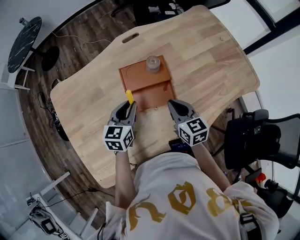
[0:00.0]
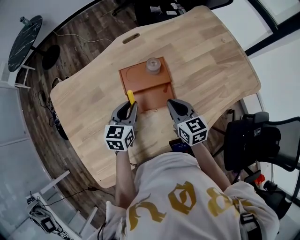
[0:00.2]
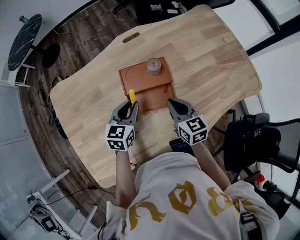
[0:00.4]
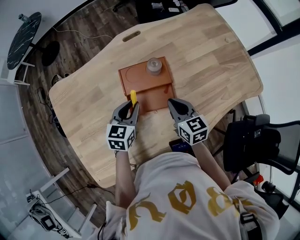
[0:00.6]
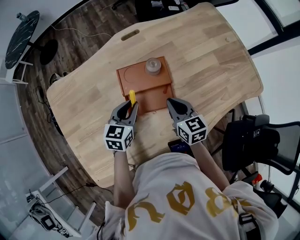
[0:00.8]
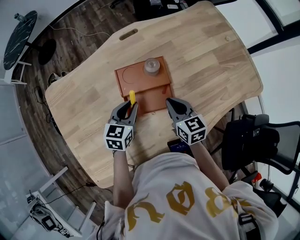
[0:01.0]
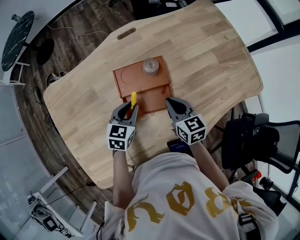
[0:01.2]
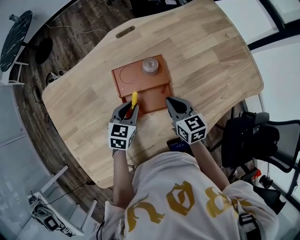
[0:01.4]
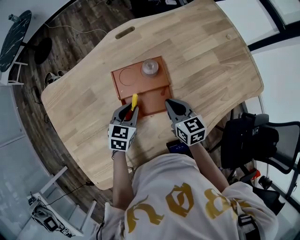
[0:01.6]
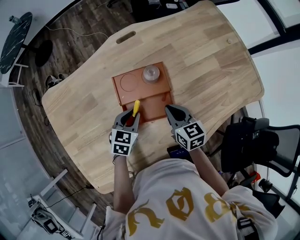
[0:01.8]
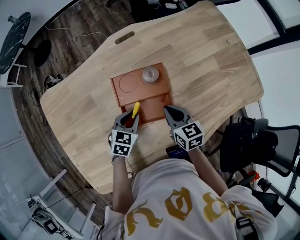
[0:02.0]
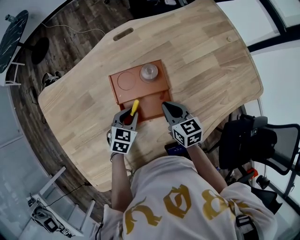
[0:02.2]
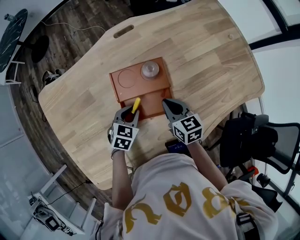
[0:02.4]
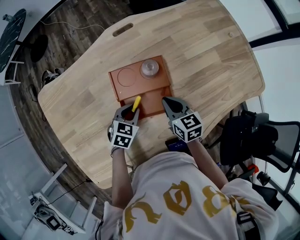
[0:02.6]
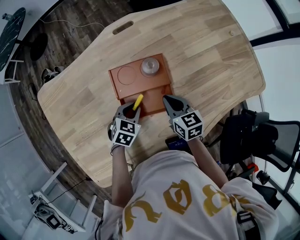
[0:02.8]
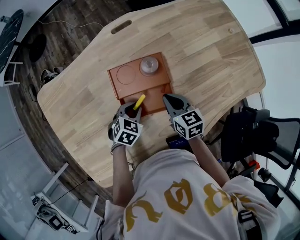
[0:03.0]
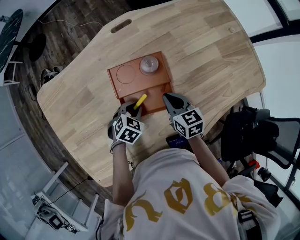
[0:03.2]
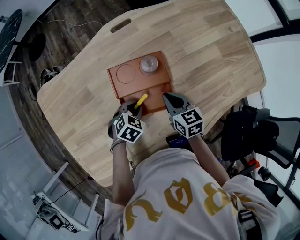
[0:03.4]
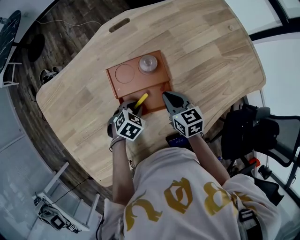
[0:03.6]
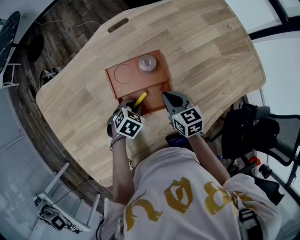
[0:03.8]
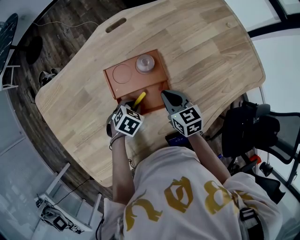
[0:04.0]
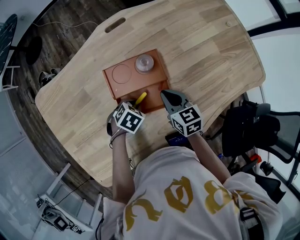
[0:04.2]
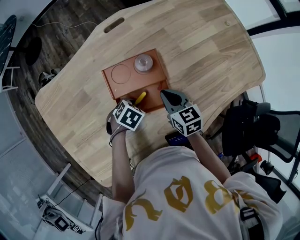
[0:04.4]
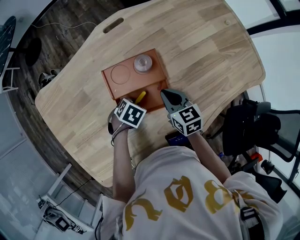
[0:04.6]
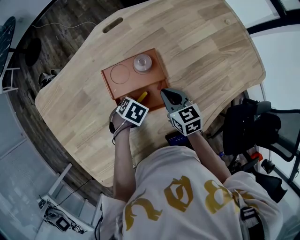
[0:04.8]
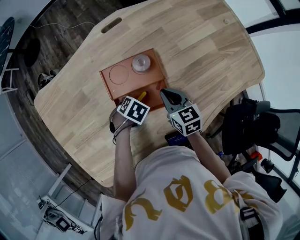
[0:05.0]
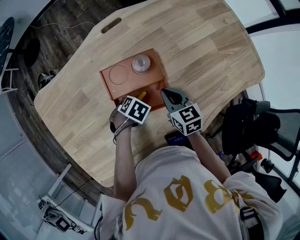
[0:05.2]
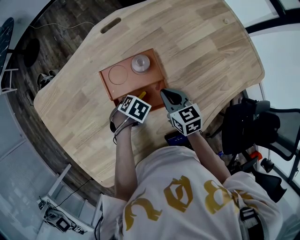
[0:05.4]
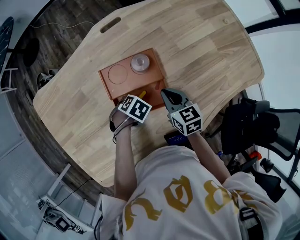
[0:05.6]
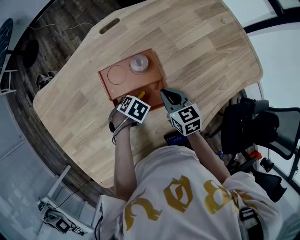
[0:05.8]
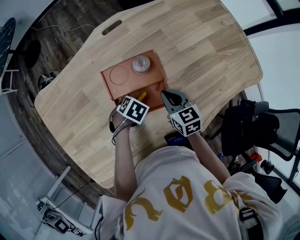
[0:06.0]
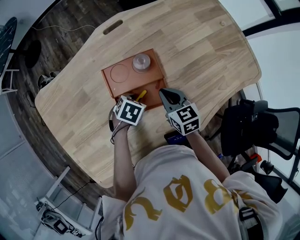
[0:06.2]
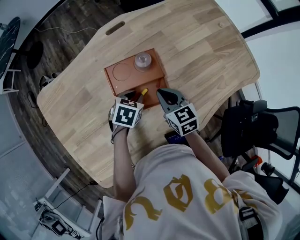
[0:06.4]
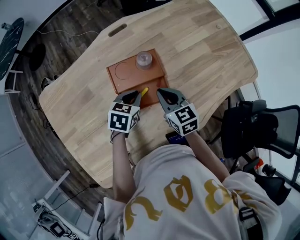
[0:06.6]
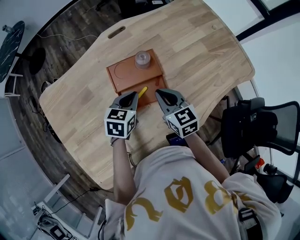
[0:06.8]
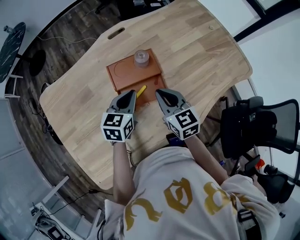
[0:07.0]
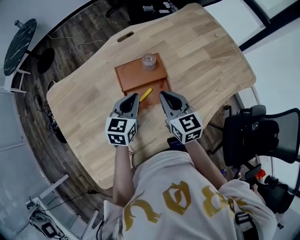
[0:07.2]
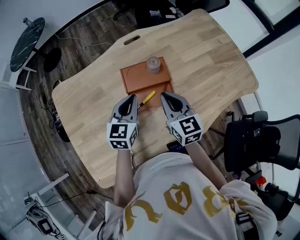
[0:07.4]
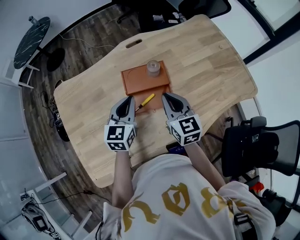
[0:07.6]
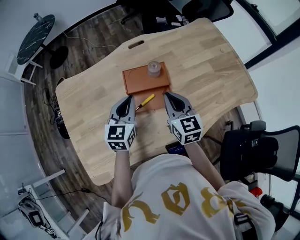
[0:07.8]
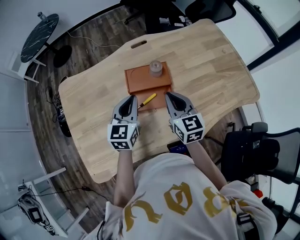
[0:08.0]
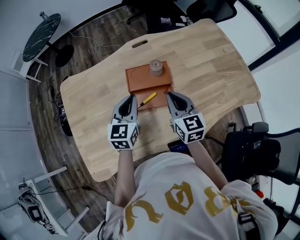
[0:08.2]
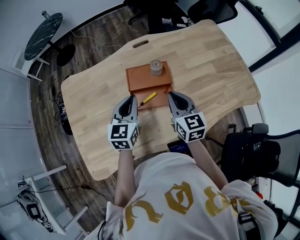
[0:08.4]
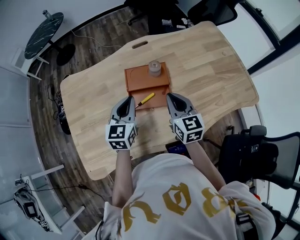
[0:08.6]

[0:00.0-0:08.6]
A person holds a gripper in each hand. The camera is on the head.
0:00.0 to 0:01.4: The right gripper moves forward, approximately 5 cm; the left gripper goes about 10 cm downward.
0:01.4 to 0:02.8: The left gripper heads downward, covering approximately 5 cm.
0:02.8 to 0:04.4: The left gripper changes its angle by about 30 degrees.
0:04.4 to 0:05.8: The grippers move only a little.
0:05.8 to 0:07.2: The right gripper moves upward, roughly 15 cm. Meanwhile the left gripper moves upward, about 20 cm, and tilts its fingers some 60 degrees upward.
0:07.2 to 0:08.6: The right gripper ends up roughly 5 cm from where it was; the left gripper is displaced upward by some 5 cm, and rotates some 20 degrees.

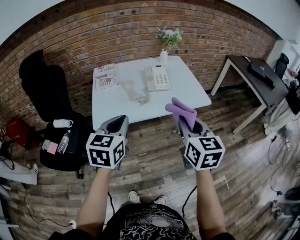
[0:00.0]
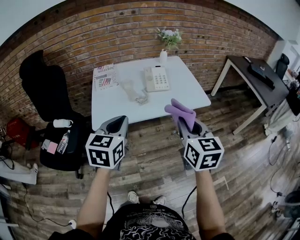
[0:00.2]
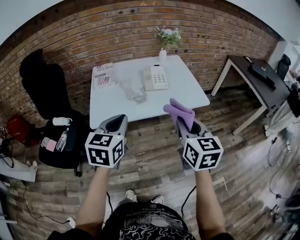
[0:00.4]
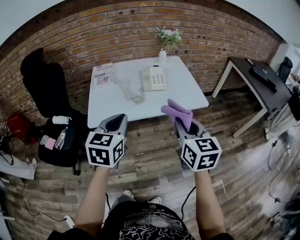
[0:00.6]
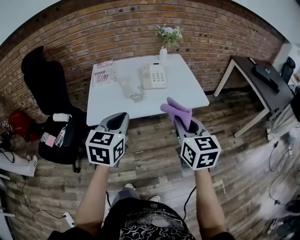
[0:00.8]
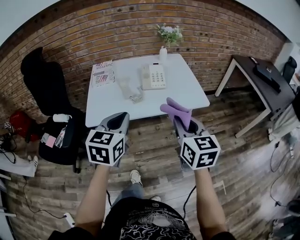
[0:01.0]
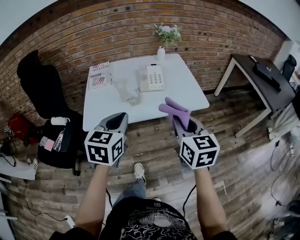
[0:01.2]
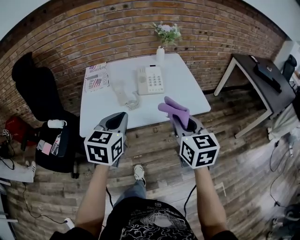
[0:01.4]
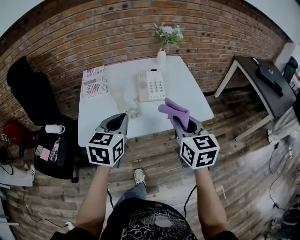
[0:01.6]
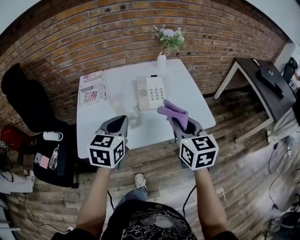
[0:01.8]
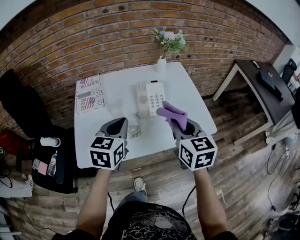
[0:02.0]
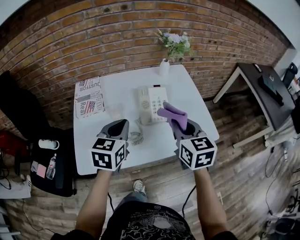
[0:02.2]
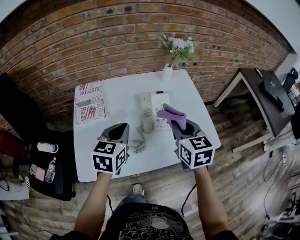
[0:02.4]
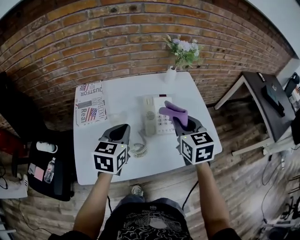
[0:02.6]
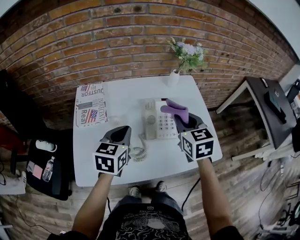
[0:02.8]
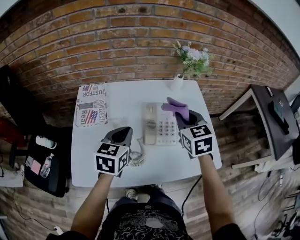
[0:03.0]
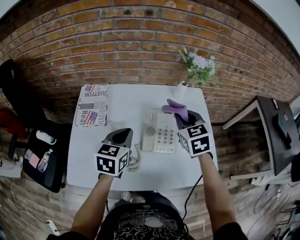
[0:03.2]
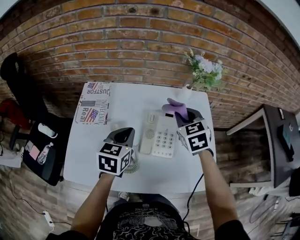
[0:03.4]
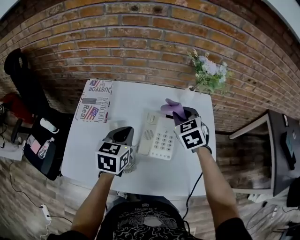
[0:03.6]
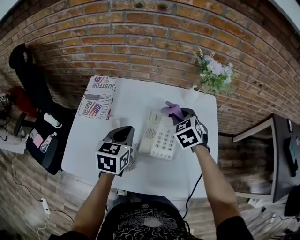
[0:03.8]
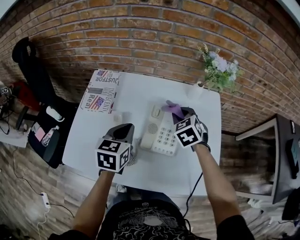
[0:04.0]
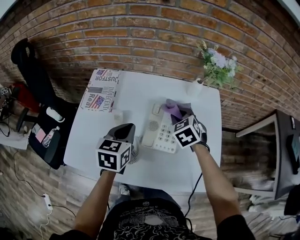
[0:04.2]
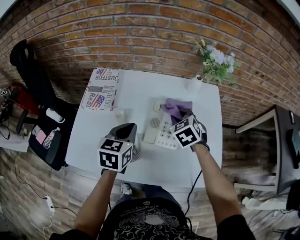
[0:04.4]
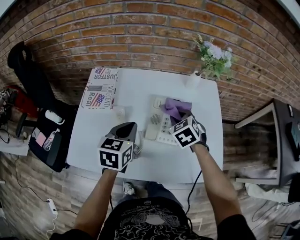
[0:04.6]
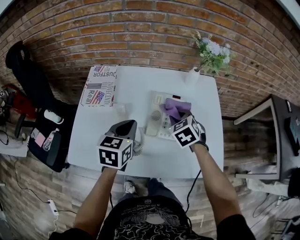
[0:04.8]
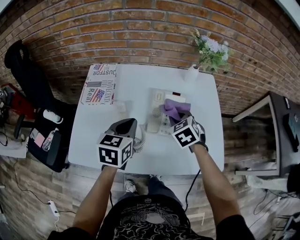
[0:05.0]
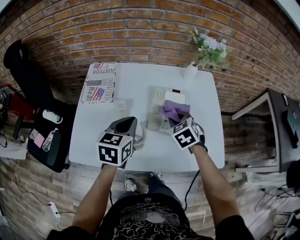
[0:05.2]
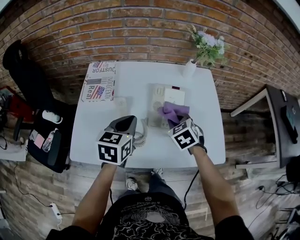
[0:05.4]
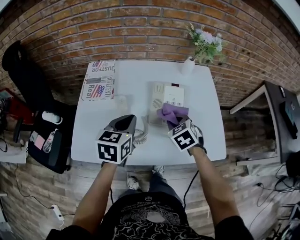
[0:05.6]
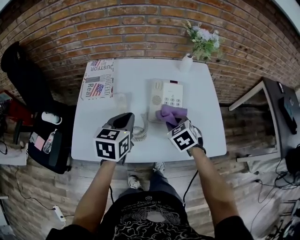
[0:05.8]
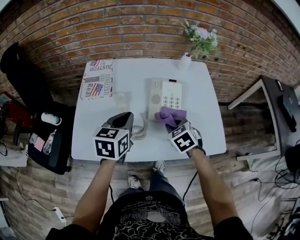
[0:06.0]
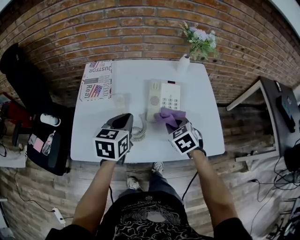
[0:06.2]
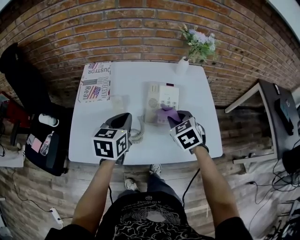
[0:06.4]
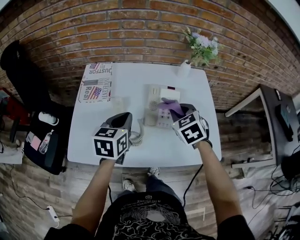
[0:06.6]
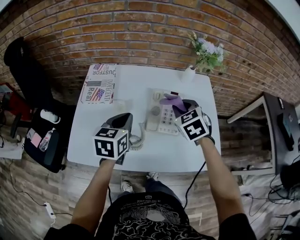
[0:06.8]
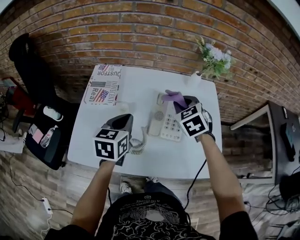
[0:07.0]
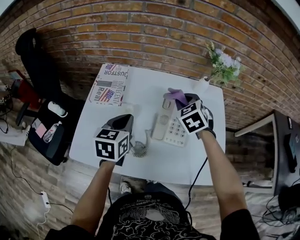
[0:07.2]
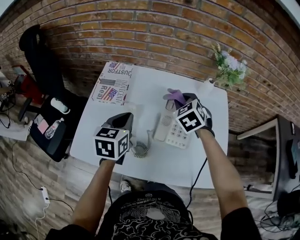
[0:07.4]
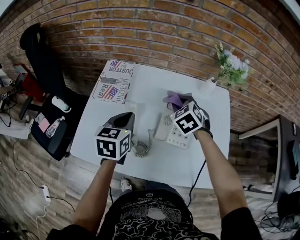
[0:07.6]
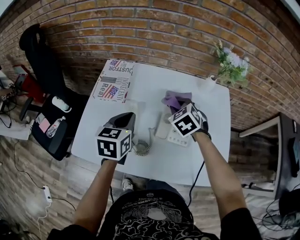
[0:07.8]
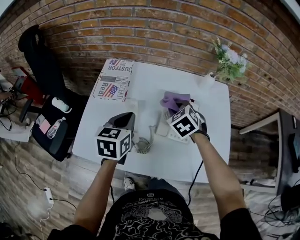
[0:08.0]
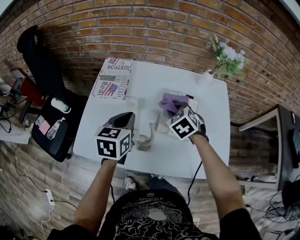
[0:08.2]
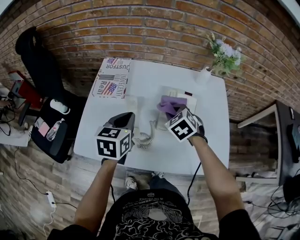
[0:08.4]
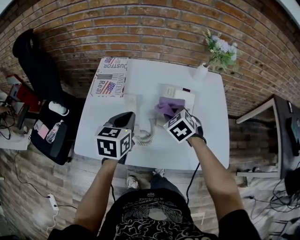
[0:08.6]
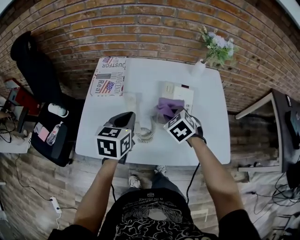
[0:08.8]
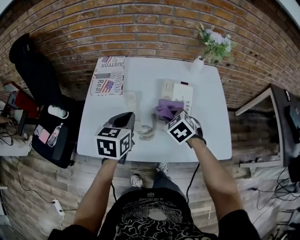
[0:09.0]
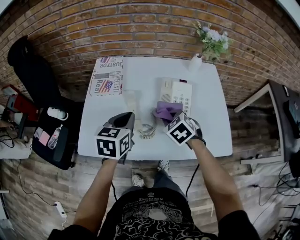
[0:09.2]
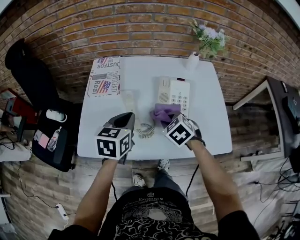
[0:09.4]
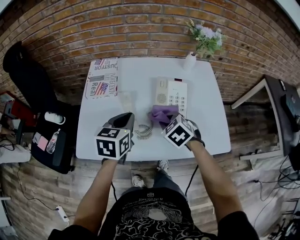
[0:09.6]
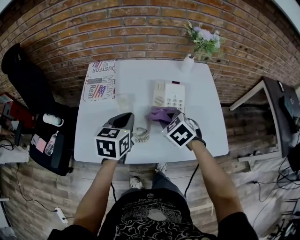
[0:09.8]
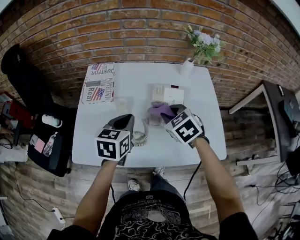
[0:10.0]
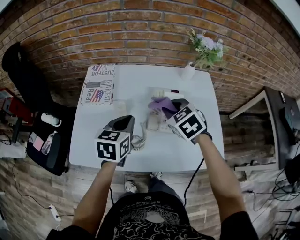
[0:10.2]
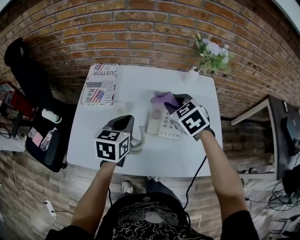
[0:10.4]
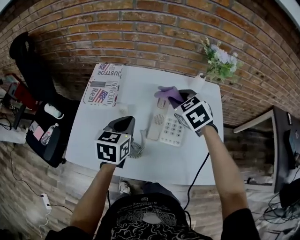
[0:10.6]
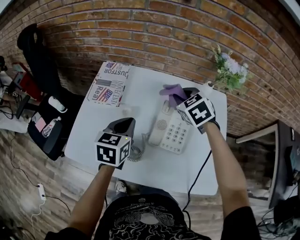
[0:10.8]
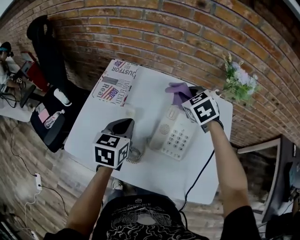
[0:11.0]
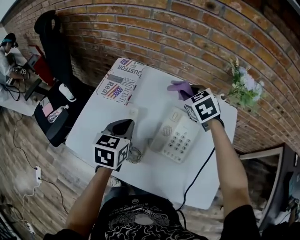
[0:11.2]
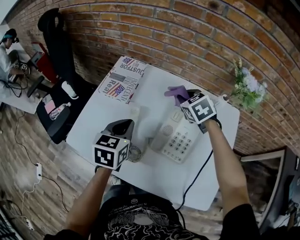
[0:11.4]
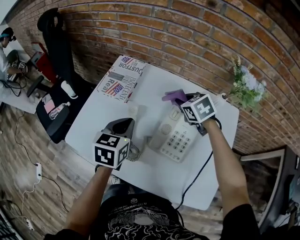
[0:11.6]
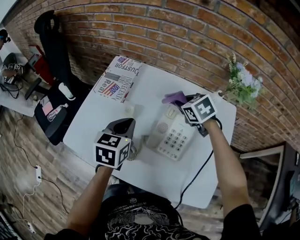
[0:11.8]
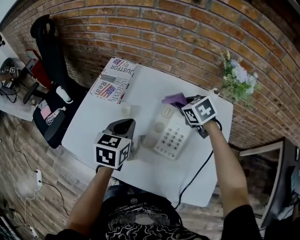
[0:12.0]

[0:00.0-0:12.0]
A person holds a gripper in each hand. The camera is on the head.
0:00.0 to 0:01.6: The right gripper heads forward, covering roughly 15 cm; the left gripper travels forward and to the right by some 15 cm.
0:01.6 to 0:03.0: Both grippers move forward, approximately 25 cm. The right gripper swivels some 20 degrees.
0:03.0 to 0:04.4: The right gripper is displaced downward and forward by about 15 cm, and rotates roughly 30 degrees.
0:04.4 to 0:06.0: The left gripper goes some 5 cm backward. The right gripper goes some 15 cm backward.
0:06.0 to 0:07.6: The left gripper travels forward by roughly 5 cm; the right gripper shifts about 20 cm forward, and rotates approximately 20 degrees.
0:07.6 to 0:09.0: The right gripper is displaced backward by approximately 15 cm, while the left gripper shifts some 5 cm backward.
0:09.0 to 0:10.4: The right gripper goes about 15 cm upward and forward. The left gripper ends up approximately 5 cm from where it was.
0:10.4 to 0:12.0: The right gripper heads forward and downward, covering about 10 cm.

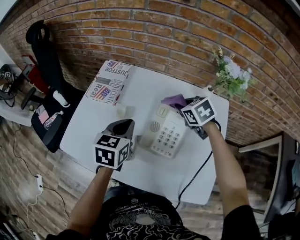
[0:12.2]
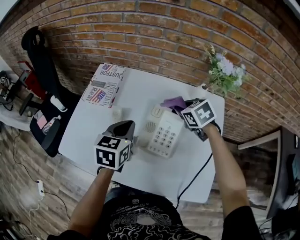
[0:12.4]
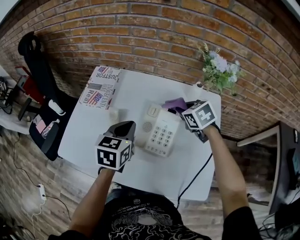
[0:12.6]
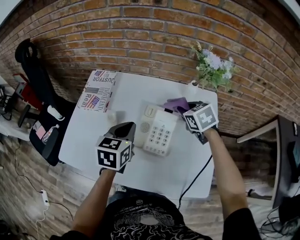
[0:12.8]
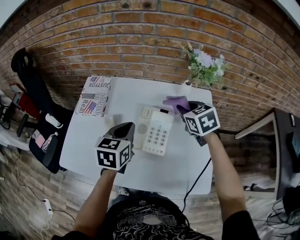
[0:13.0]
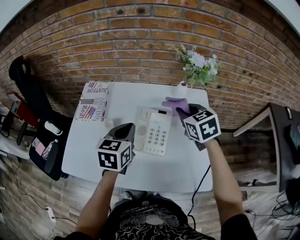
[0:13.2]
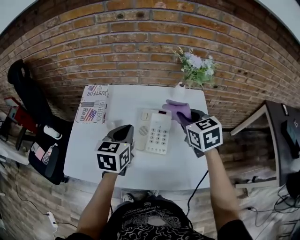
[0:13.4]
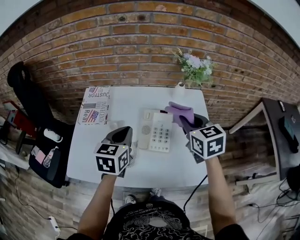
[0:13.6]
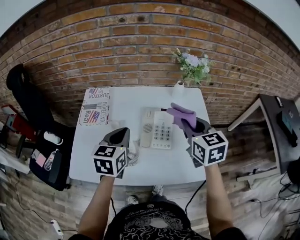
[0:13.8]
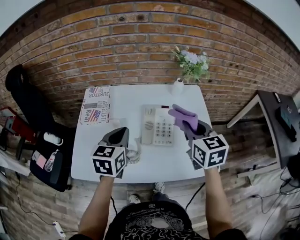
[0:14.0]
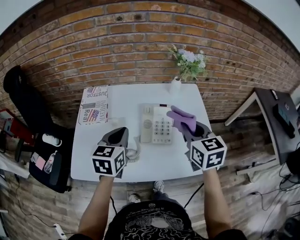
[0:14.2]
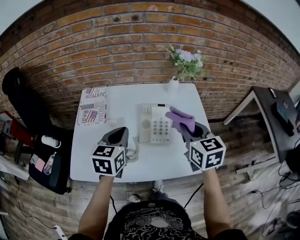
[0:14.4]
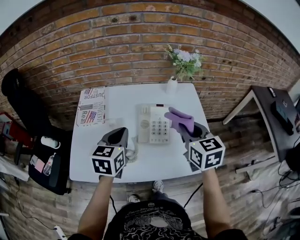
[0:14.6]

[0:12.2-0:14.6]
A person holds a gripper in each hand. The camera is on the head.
0:12.2 to 0:13.4: The left gripper ends up approximately 5 cm from where it was. The right gripper heads upward, backward and to the right, covering some 15 cm, and rotates roughly 30 degrees.
0:13.4 to 0:14.6: The left gripper shifts approximately 5 cm backward; the right gripper moves backward, roughly 10 cm.
